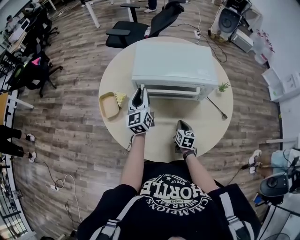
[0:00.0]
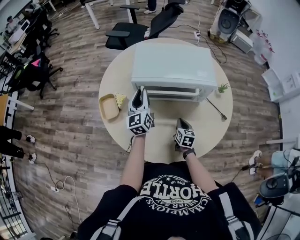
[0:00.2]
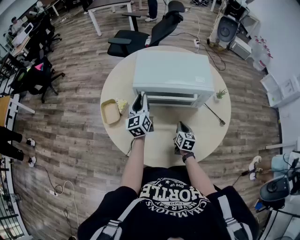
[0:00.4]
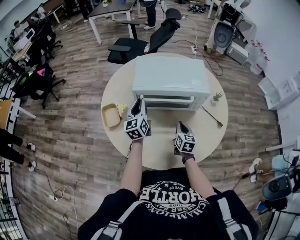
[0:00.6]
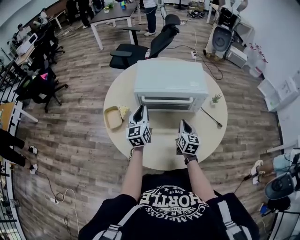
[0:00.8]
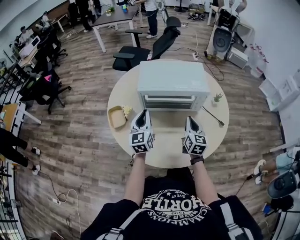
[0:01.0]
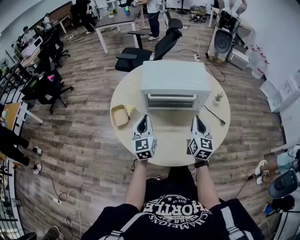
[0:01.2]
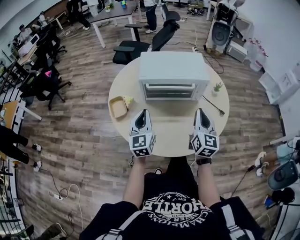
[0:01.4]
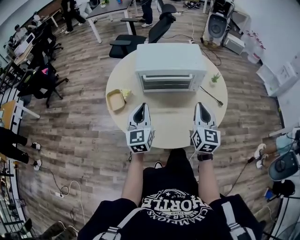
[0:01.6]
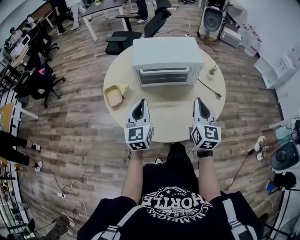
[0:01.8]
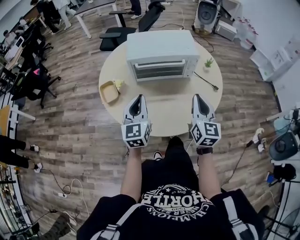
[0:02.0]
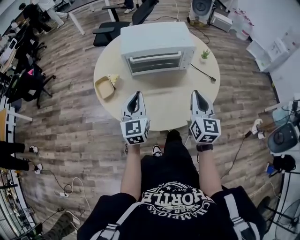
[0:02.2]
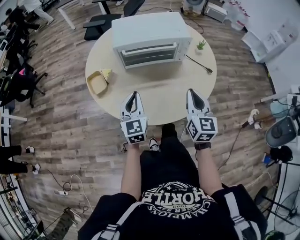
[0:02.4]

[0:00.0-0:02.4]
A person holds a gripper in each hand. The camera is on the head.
0:00.0 to 0:01.2: The right gripper heads upward, covering some 25 cm, and points its fingers some 30 degrees further upward, while the left gripper goes roughly 15 cm backward.
0:01.2 to 0:02.4: The grippers both shift backward by approximately 10 cm.

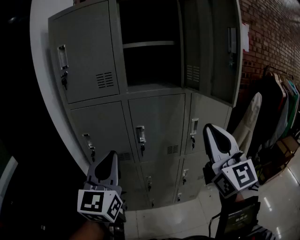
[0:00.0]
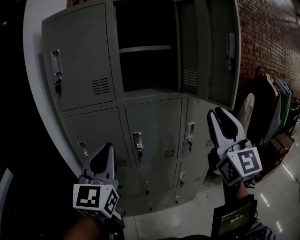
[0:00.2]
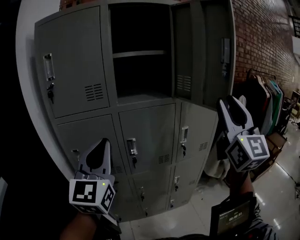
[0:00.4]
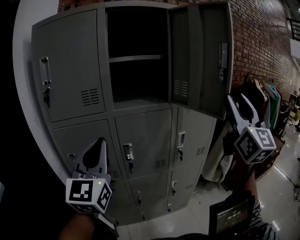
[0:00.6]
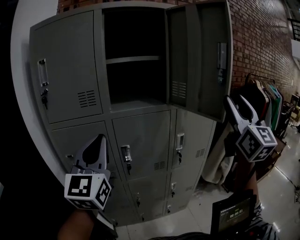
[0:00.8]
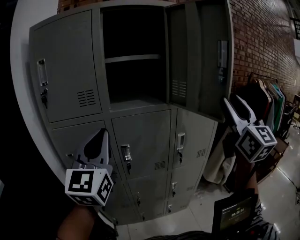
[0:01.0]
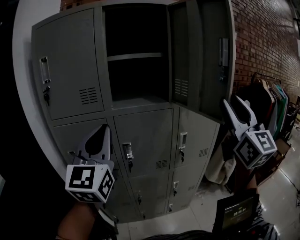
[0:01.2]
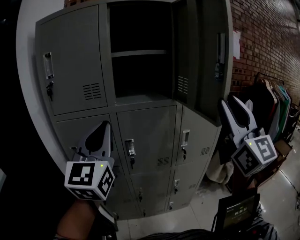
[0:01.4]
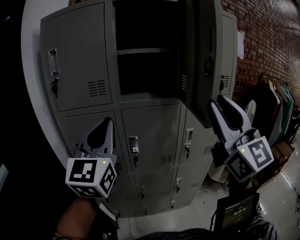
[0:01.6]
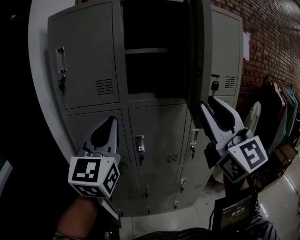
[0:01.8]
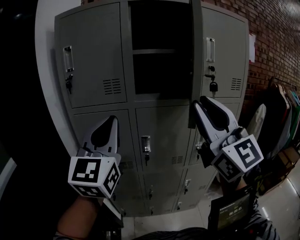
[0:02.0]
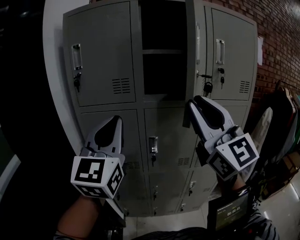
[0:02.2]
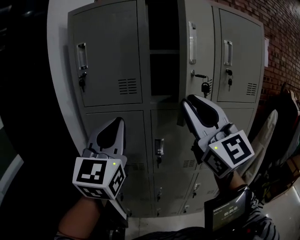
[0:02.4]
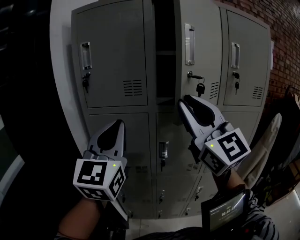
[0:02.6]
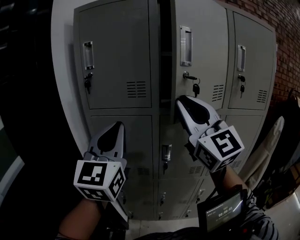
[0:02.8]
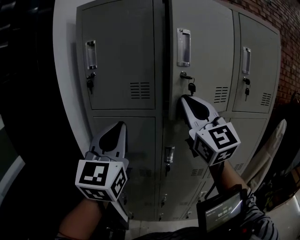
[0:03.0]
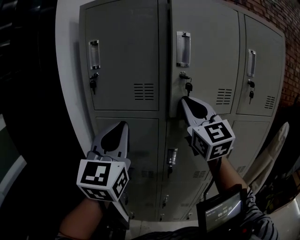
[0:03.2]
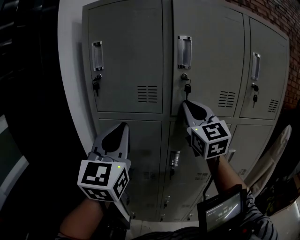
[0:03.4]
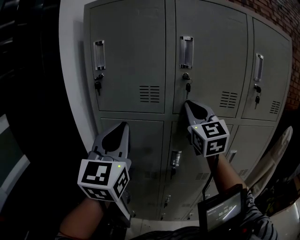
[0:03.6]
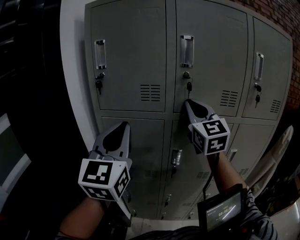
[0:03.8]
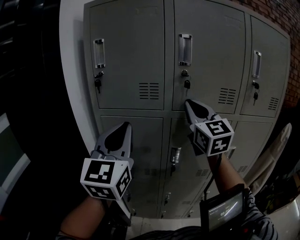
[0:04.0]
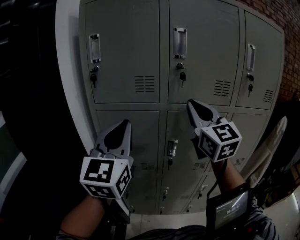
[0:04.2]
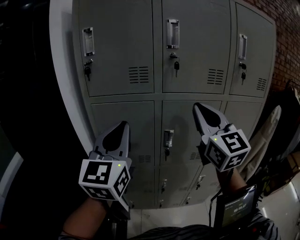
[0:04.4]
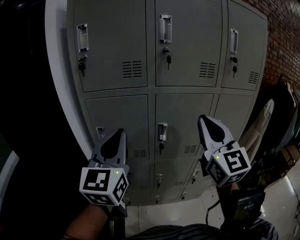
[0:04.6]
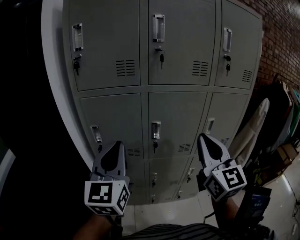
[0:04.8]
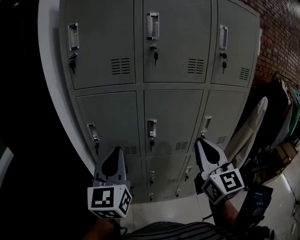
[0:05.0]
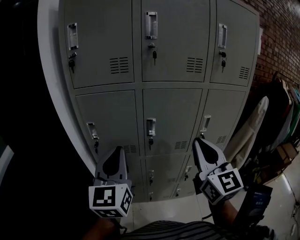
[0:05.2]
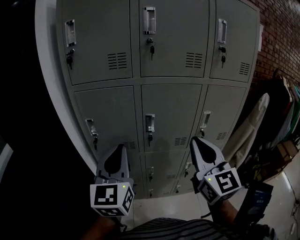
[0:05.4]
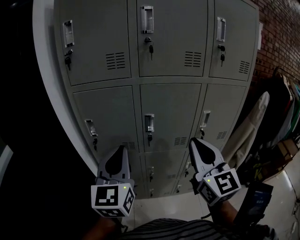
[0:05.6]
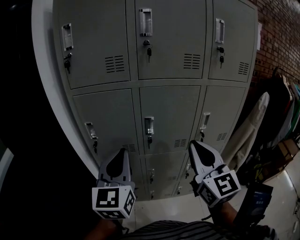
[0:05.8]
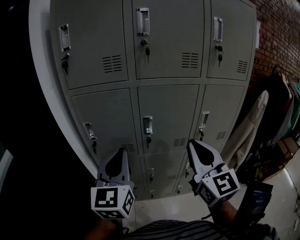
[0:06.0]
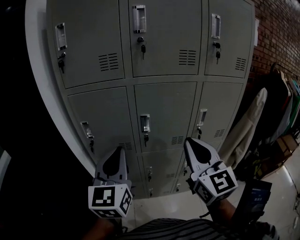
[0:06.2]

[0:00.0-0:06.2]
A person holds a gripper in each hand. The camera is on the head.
0:00.0 to 0:01.6: The left gripper heads upward and forward, covering approximately 10 cm; the right gripper moves upward, some 10 cm, reaches about 10 cm to the right, then returns, and opens up.
0:01.6 to 0:03.2: The left gripper moves to the left and forward, some 10 cm; the right gripper shifts some 30 cm forward and to the left, and closes its fingers.
0:03.2 to 0:04.6: The left gripper goes roughly 10 cm downward. Meanwhile the right gripper goes some 15 cm backward, downward and to the right.
0:04.6 to 0:06.2: The left gripper is displaced downward and to the right by about 10 cm. Meanwhile the right gripper goes approximately 10 cm downward.

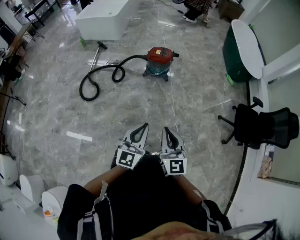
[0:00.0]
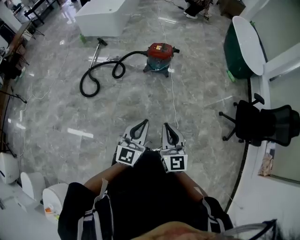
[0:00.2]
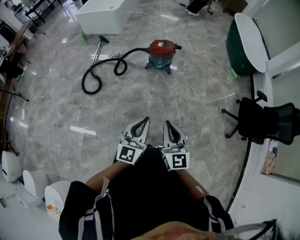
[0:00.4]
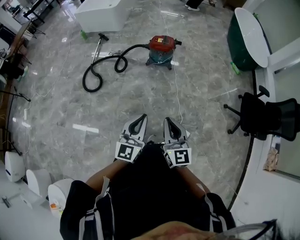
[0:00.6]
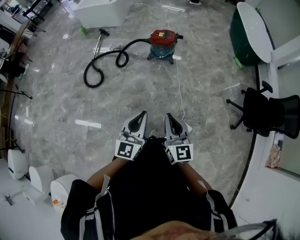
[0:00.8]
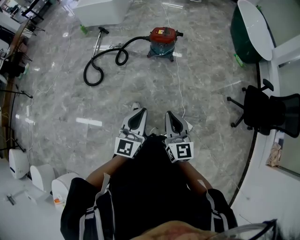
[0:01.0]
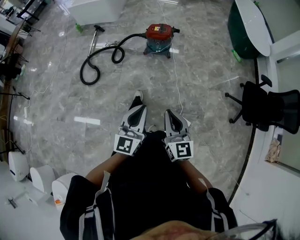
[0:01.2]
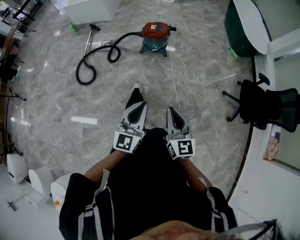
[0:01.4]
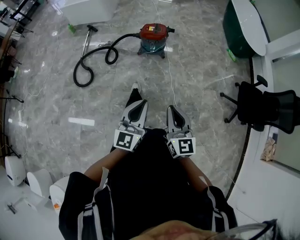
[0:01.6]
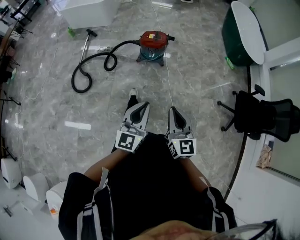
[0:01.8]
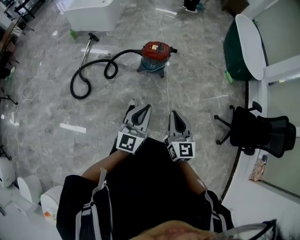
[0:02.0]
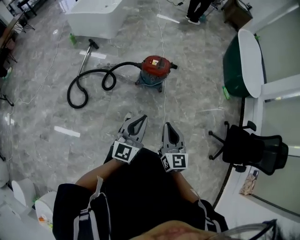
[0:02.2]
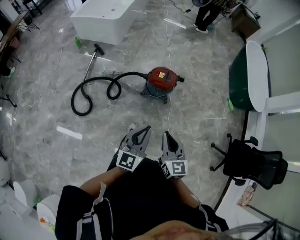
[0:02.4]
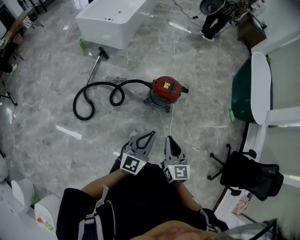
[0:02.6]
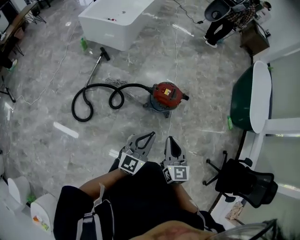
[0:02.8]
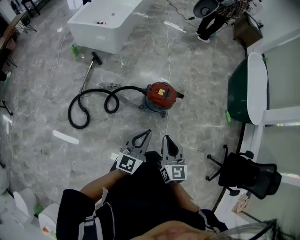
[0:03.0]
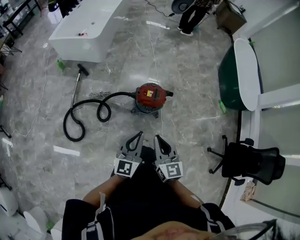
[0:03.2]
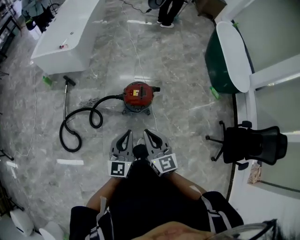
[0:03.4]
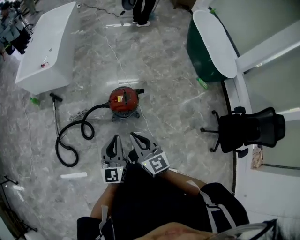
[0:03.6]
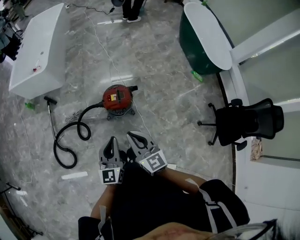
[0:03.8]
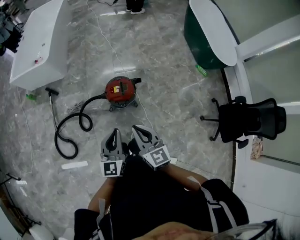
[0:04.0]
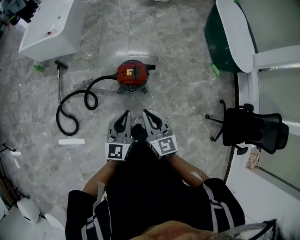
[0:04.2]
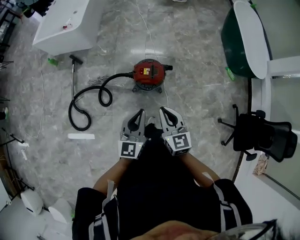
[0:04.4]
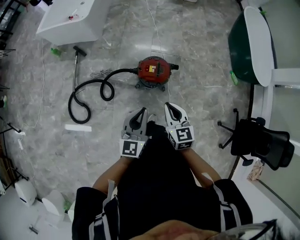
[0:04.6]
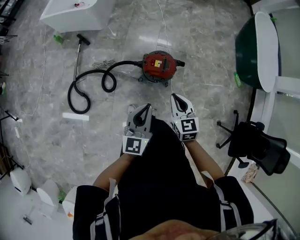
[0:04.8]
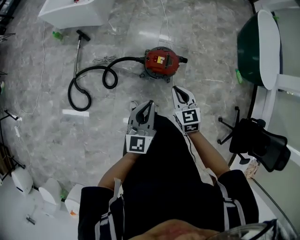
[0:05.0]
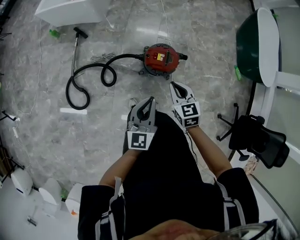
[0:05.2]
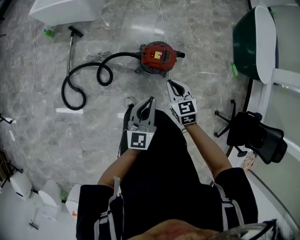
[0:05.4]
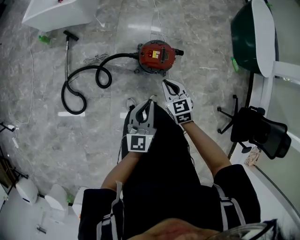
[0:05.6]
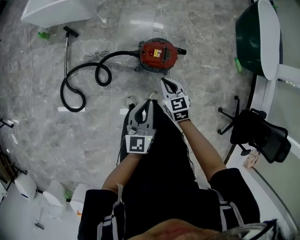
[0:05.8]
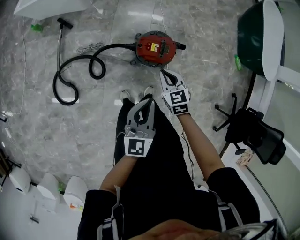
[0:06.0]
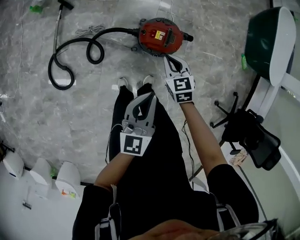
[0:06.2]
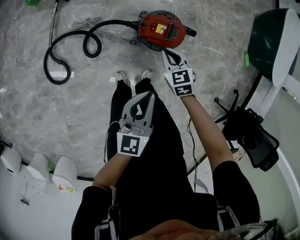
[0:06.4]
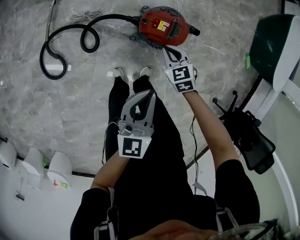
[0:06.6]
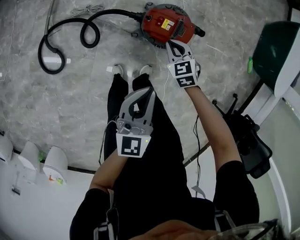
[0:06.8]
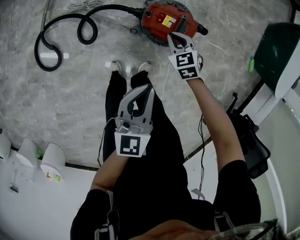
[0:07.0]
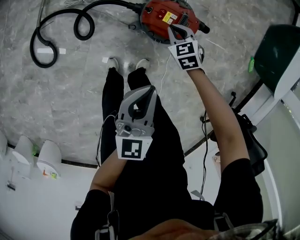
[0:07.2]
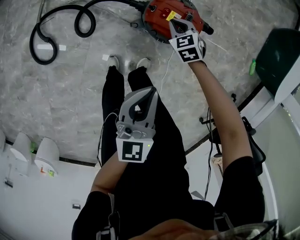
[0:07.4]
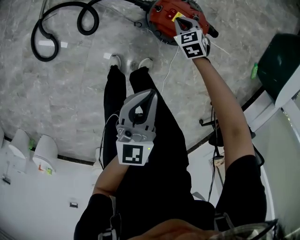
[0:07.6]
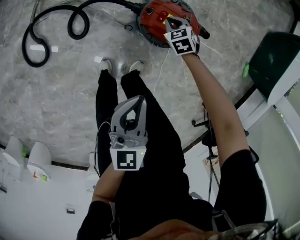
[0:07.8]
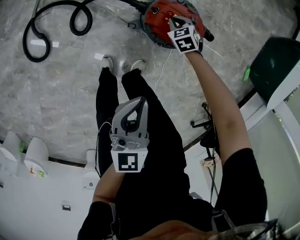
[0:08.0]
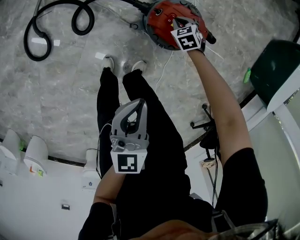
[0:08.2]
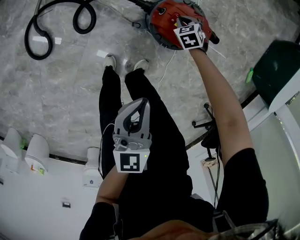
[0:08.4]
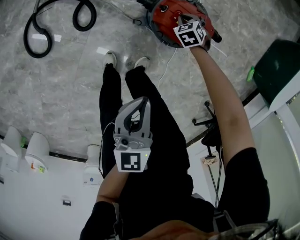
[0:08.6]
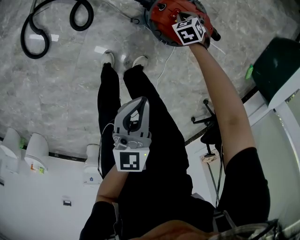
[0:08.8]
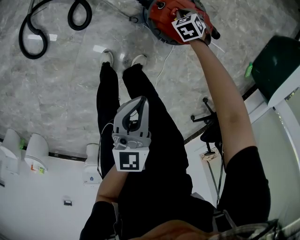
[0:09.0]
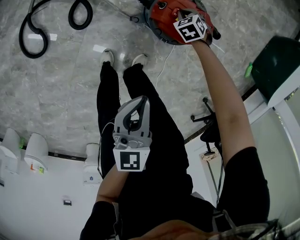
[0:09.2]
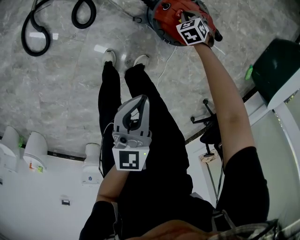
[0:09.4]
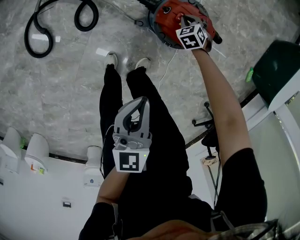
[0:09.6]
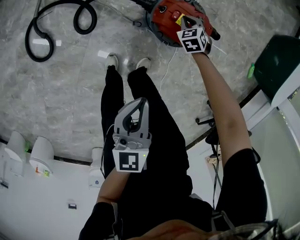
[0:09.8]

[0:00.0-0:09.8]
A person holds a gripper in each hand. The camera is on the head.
0:00.0 to 0:01.4: The right gripper travels to the right by some 5 cm, while the left gripper moves about 5 cm.
0:01.4 to 0:02.8: The two grippers travel together, forward, roughly 50 cm.
0:02.8 to 0:04.2: The grippers both shift forward and to the right by approximately 15 cm.
0:04.2 to 0:05.6: The left gripper travels to the left and downward by some 15 cm. Meanwhile the right gripper shifts about 20 cm downward, forward and to the left, and changes its angle by approximately 30 degrees.
0:05.6 to 0:07.0: The left gripper is displaced downward by roughly 15 cm; the right gripper is displaced downward and forward by roughly 30 cm, and rotates approximately 20 degrees.
0:07.0 to 0:08.4: The right gripper heads downward, covering some 20 cm. Meanwhile the left gripper goes roughly 5 cm downward.
0:08.4 to 0:09.8: The grippers make only small movements.

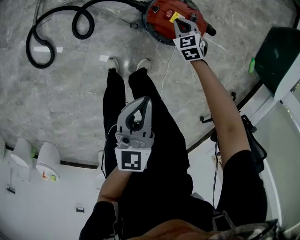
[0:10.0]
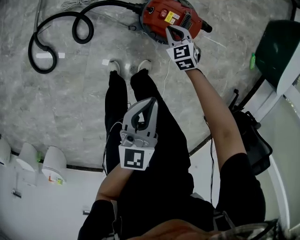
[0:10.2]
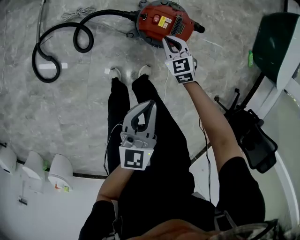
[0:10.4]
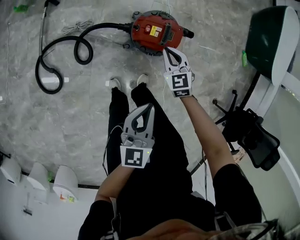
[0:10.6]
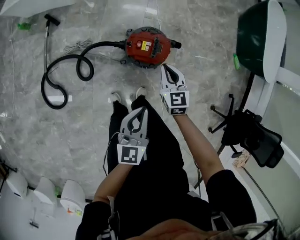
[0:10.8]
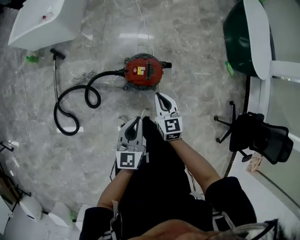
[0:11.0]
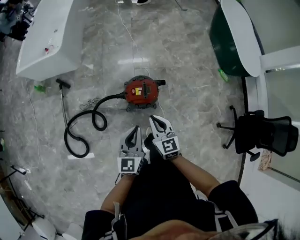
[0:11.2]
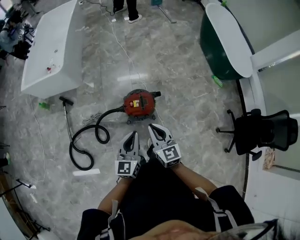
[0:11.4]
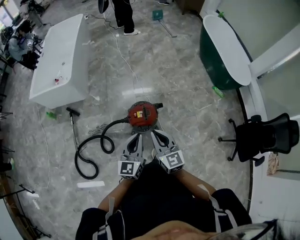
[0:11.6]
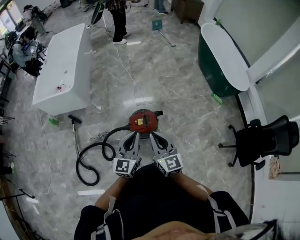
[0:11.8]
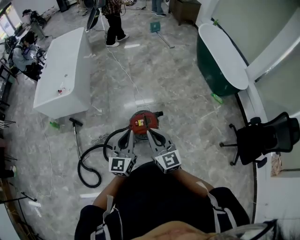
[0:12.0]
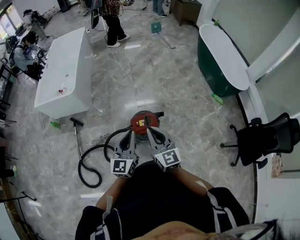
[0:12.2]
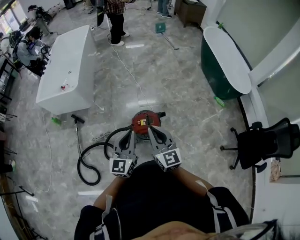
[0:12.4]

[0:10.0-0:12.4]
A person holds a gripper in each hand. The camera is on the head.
0:10.0 to 0:11.2: The right gripper goes approximately 50 cm upward and backward, and points its fingers roughly 30 degrees further upward; the left gripper goes approximately 20 cm upward, and rotates about 30 degrees.
0:11.2 to 0:12.4: The two grippers go about 15 cm upward. The right gripper changes its angle by approximately 20 degrees.

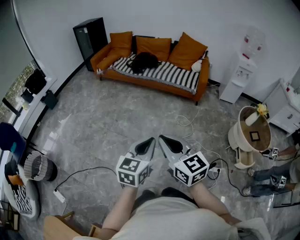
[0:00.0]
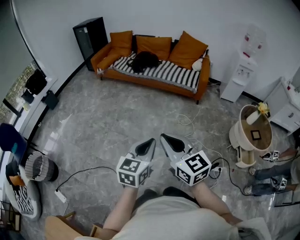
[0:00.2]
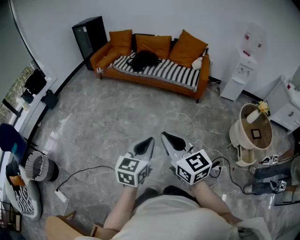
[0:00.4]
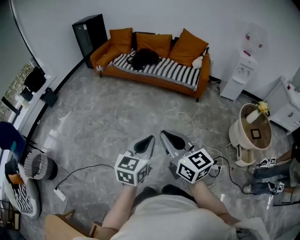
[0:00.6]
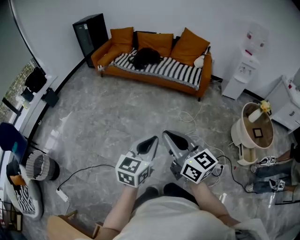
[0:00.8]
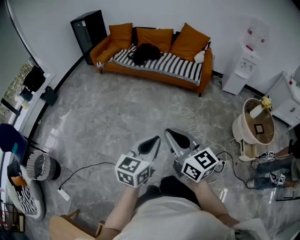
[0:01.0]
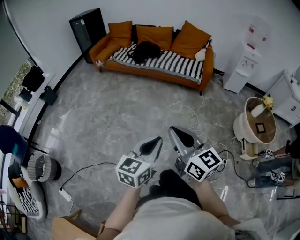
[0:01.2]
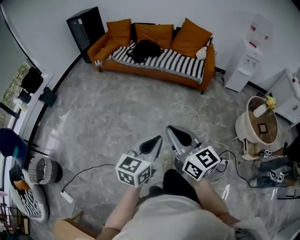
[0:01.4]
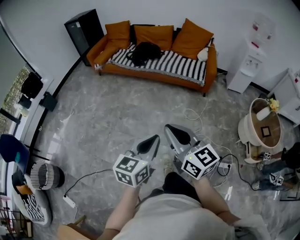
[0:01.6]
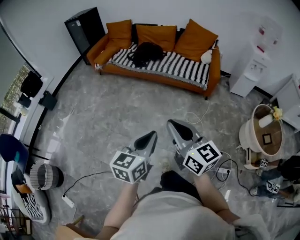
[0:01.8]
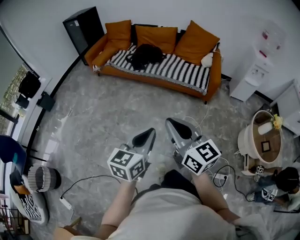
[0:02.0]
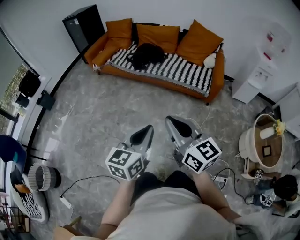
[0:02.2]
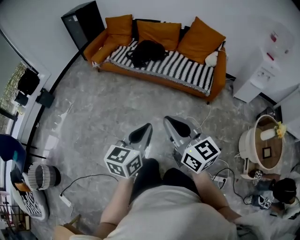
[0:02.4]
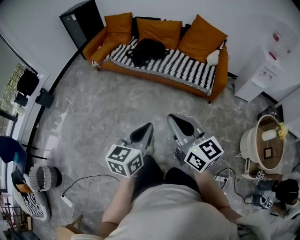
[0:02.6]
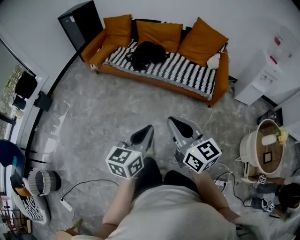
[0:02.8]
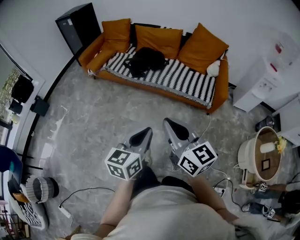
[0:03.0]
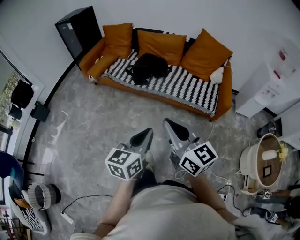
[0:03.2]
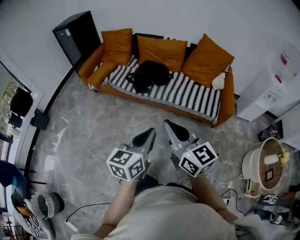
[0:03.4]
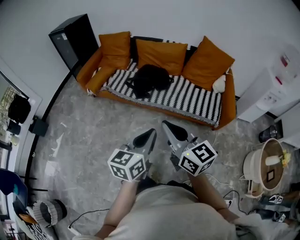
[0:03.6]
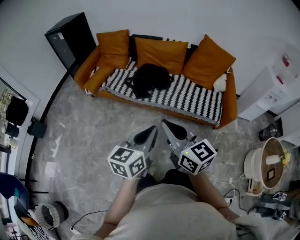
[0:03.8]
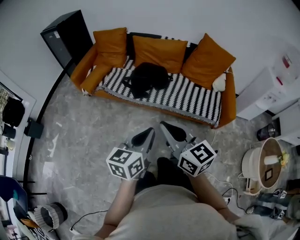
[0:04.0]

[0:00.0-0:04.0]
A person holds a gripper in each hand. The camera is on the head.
0:00.0 to 0:01.4: The grippers both shift forward by roughly 5 cm.
0:01.4 to 0:02.6: The grippers both shift forward by roughly 30 cm.
0:02.6 to 0:04.0: Both grippers move forward, approximately 35 cm.
